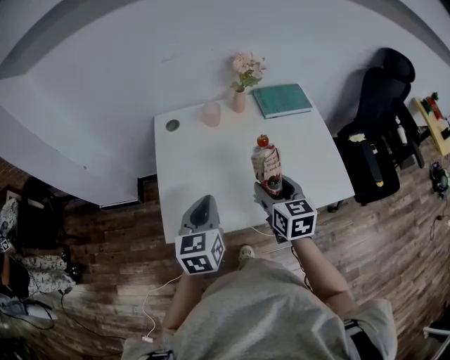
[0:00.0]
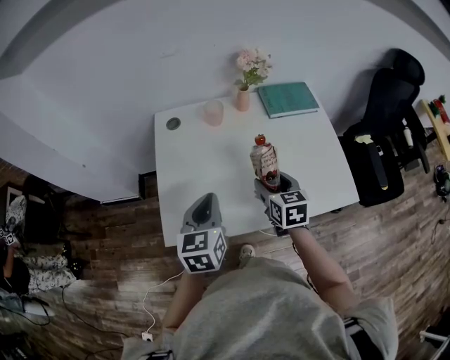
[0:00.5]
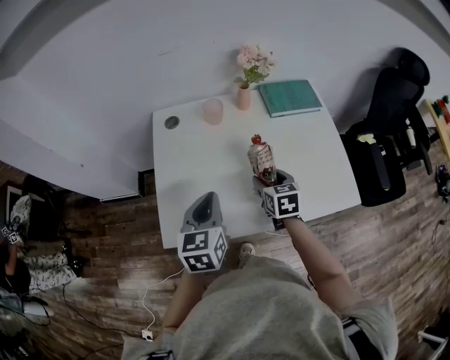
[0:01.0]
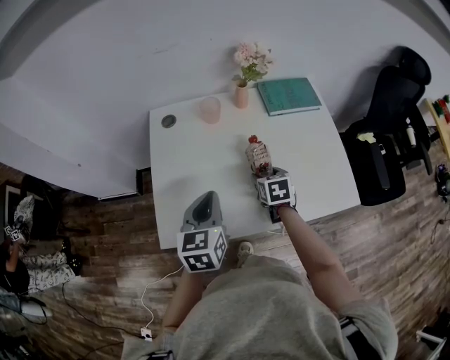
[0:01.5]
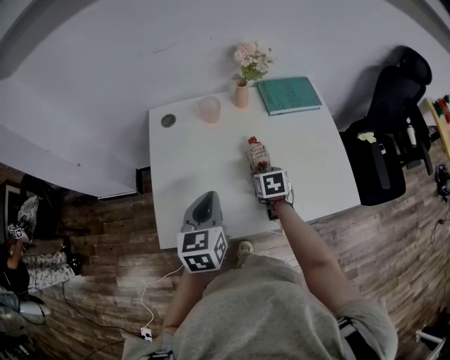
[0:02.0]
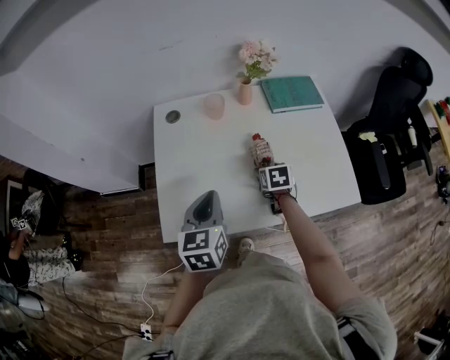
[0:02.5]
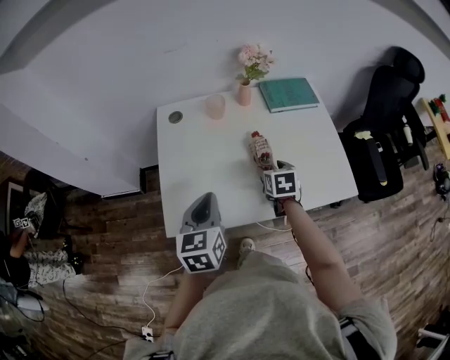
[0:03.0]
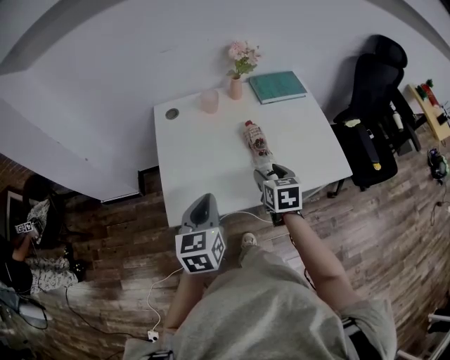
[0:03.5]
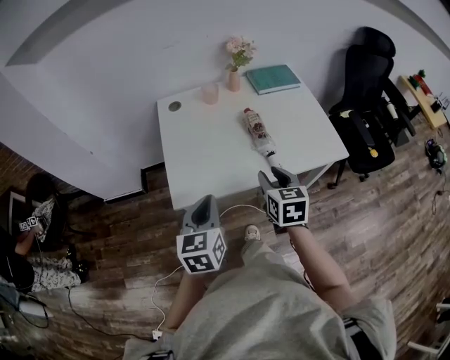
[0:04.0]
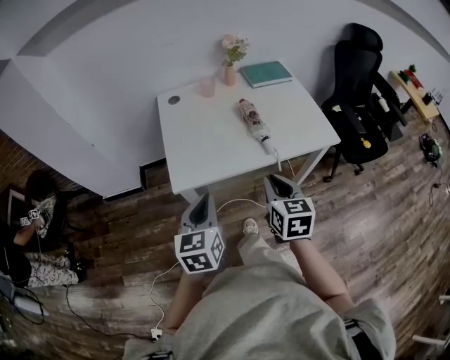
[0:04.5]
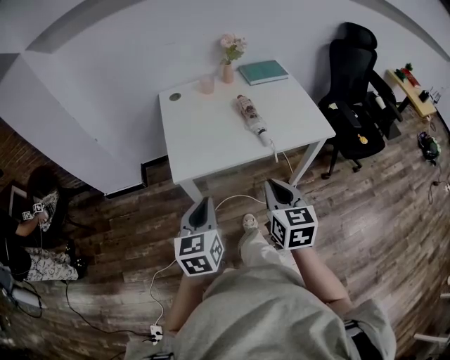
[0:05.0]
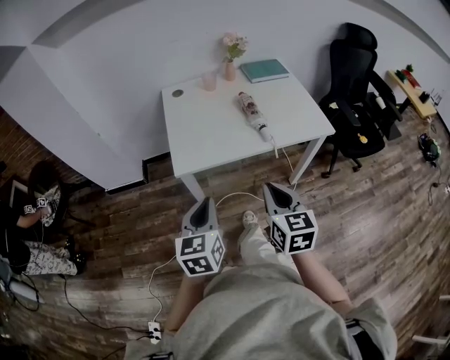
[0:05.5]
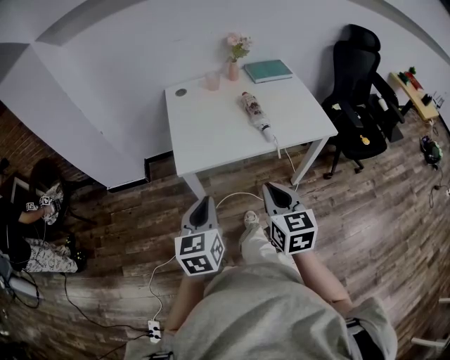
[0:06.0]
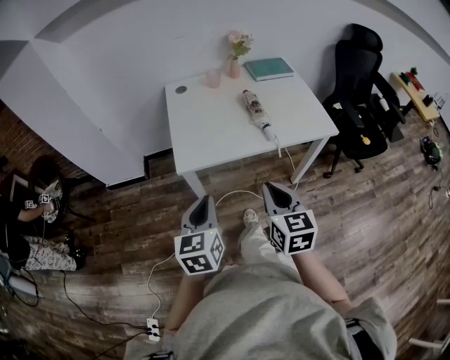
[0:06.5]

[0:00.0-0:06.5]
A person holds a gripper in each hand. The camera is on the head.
0.0 to 2.0 s: The left gripper moves forward, roughly 5 cm. The right gripper goes approximately 20 cm downward and forward, and tips its fingers downward by approximately 30 degrees.
2.0 to 4.5 s: The right gripper moves backward and upward, some 40 cm, tips its fingers upward by about 30 degrees, and closes its fingers, while the left gripper goes approximately 30 cm backward.
4.5 to 6.5 s: The grippers both shift backward by approximately 10 cm.

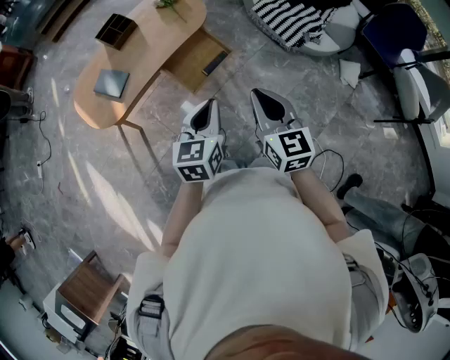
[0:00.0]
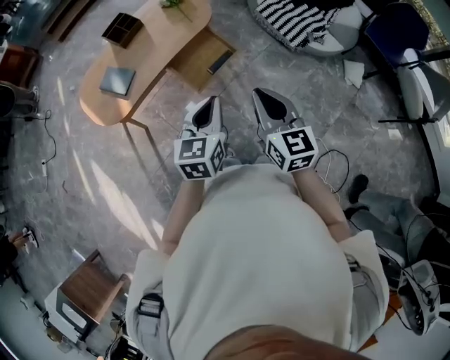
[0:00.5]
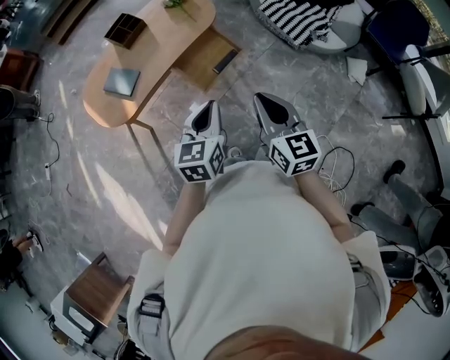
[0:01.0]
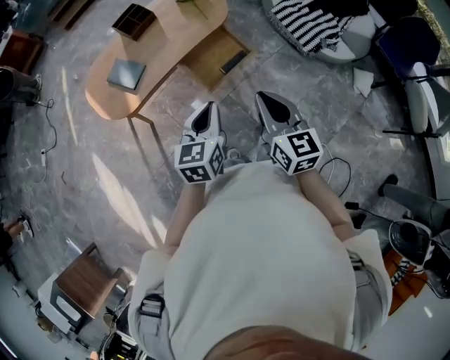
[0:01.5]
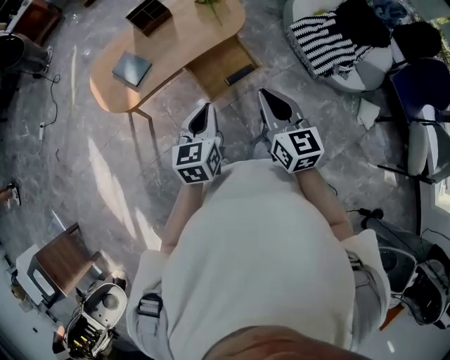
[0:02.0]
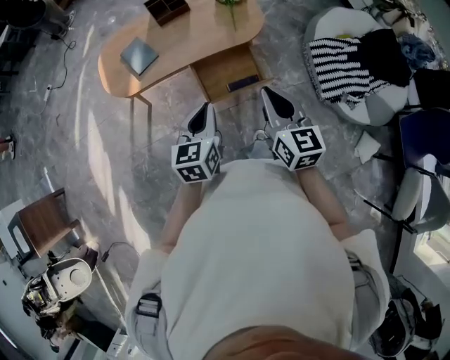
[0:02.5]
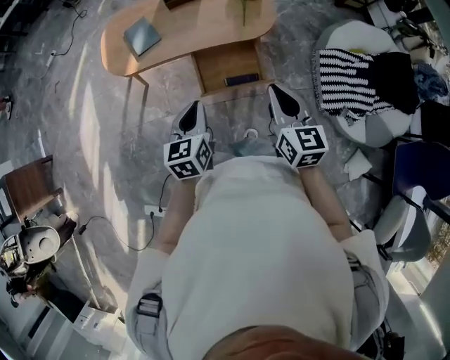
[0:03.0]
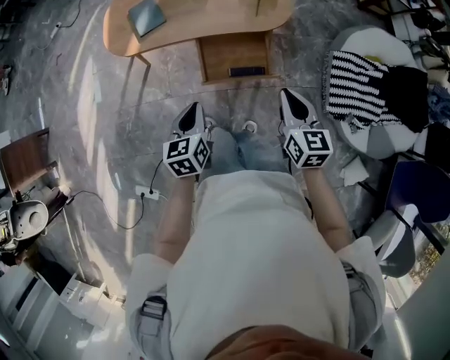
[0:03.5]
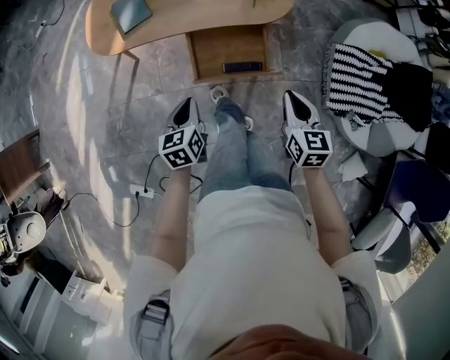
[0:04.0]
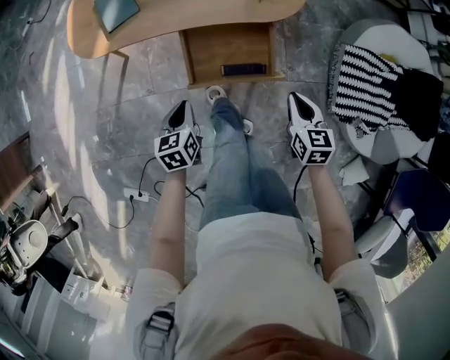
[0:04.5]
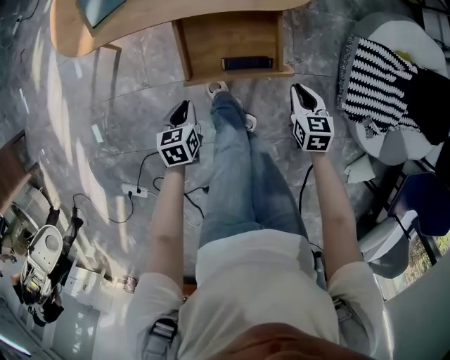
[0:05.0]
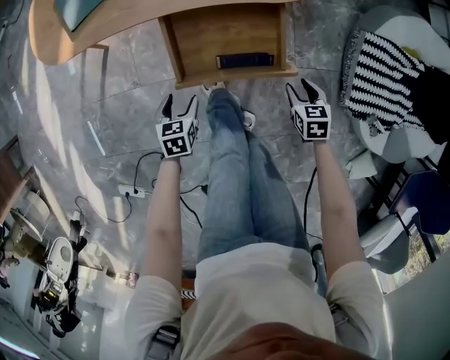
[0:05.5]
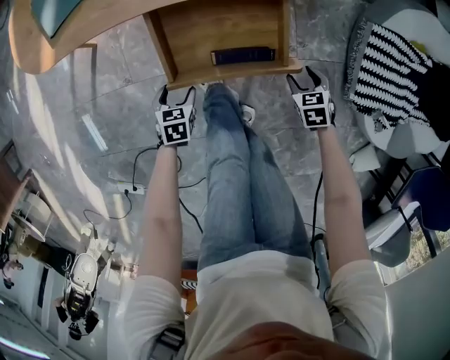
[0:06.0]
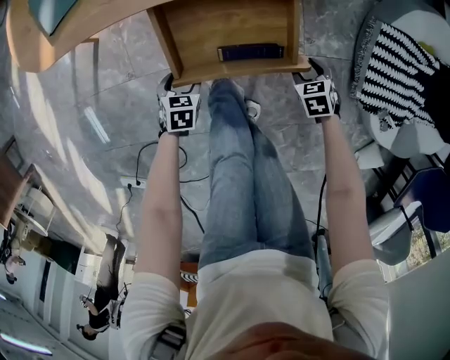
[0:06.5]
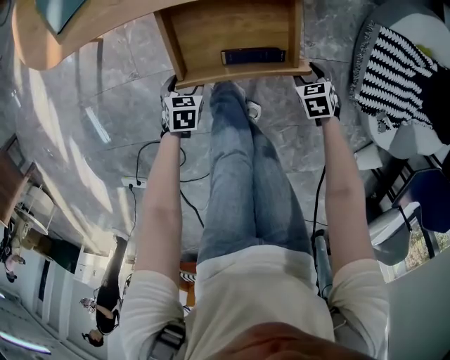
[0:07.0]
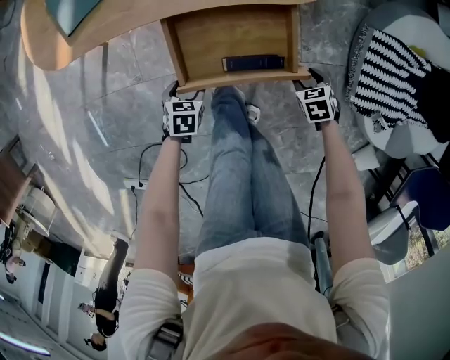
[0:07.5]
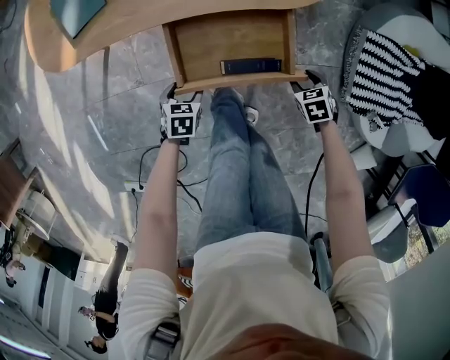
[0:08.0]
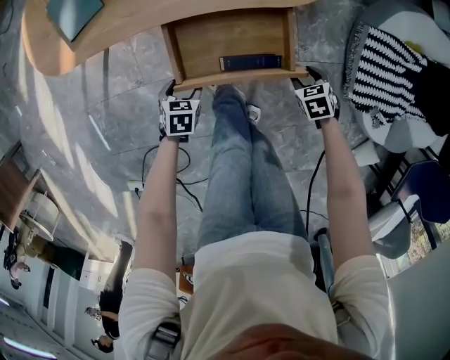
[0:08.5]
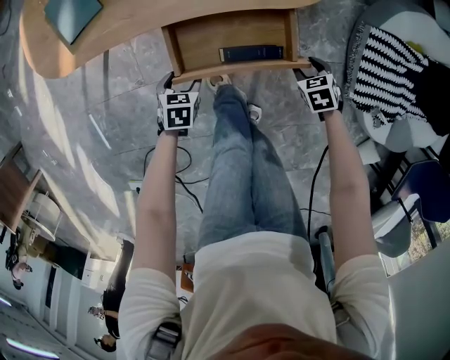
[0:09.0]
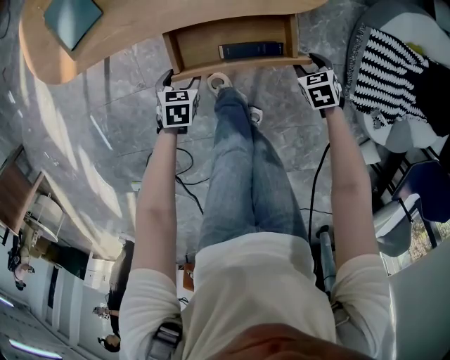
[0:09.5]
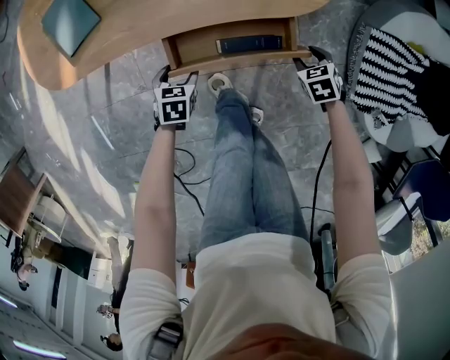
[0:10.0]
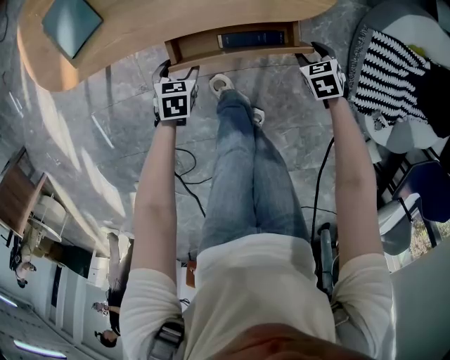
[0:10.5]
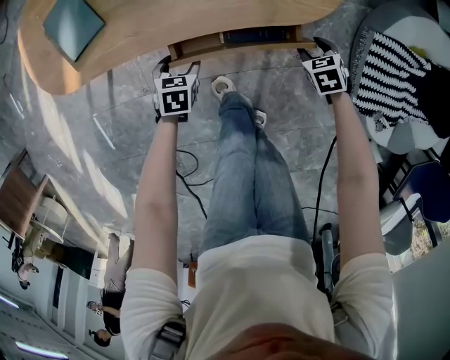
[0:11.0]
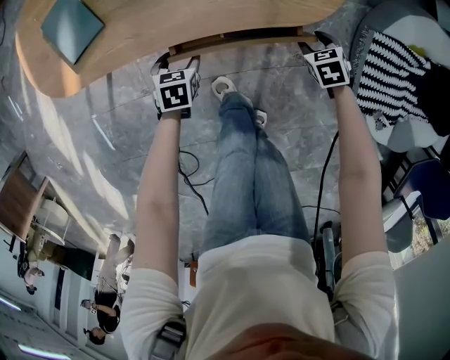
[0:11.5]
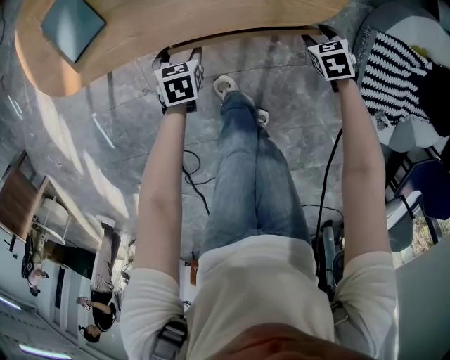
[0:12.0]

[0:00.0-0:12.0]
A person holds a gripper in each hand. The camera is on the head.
0.0 to 2.0 s: The left gripper travels forward and to the left by approximately 10 cm. The right gripper moves forward, about 10 cm.
2.0 to 4.0 s: The right gripper moves about 30 cm, and turns by some 30 degrees. The left gripper heads downward, covering some 20 cm, and swivels roughly 40 degrees.
4.0 to 6.0 s: The two grippers go about 40 cm downward. The right gripper tilts its fingers roughly 30 degrees downward, and opens its fingers, while the left gripper rotates about 30 degrees, and opens its fingers.
6.0 to 8.0 s: The left gripper moves about 5 cm.
8.0 to 10.0 s: The left gripper moves some 10 cm, while the right gripper changes place by about 10 cm.
10.0 to 12.0 s: The right gripper ends up about 10 cm from where it was; the left gripper changes place by some 10 cm.

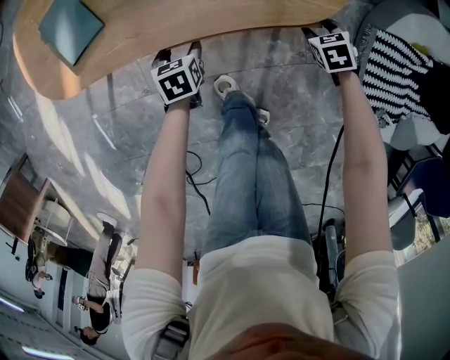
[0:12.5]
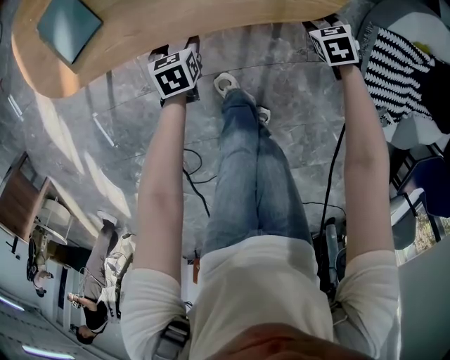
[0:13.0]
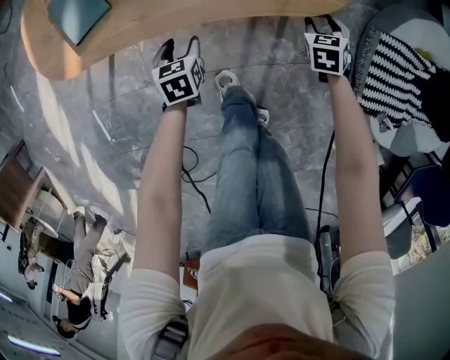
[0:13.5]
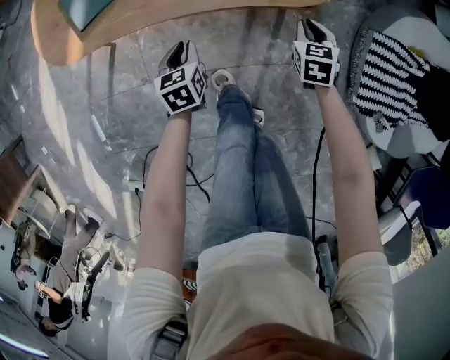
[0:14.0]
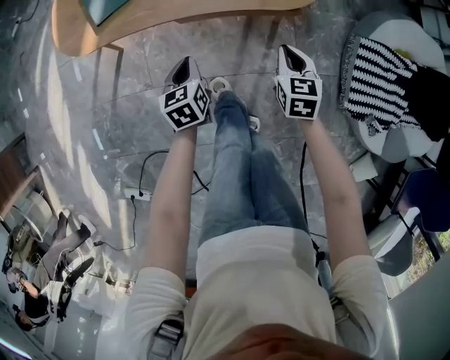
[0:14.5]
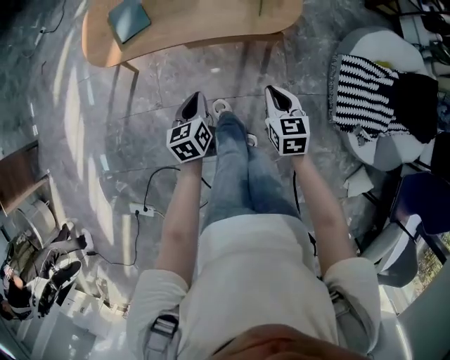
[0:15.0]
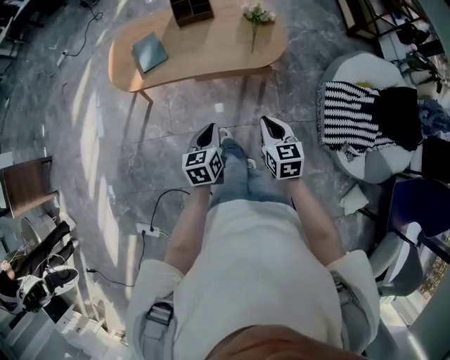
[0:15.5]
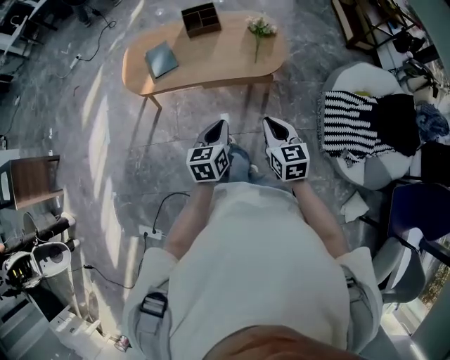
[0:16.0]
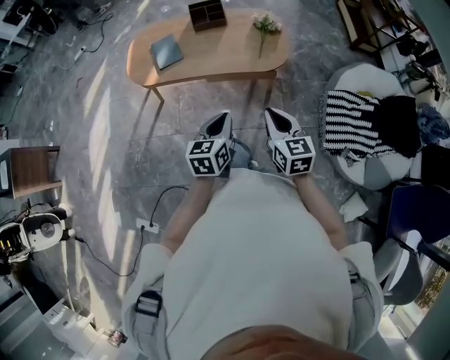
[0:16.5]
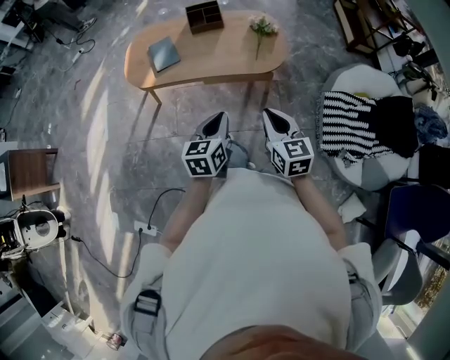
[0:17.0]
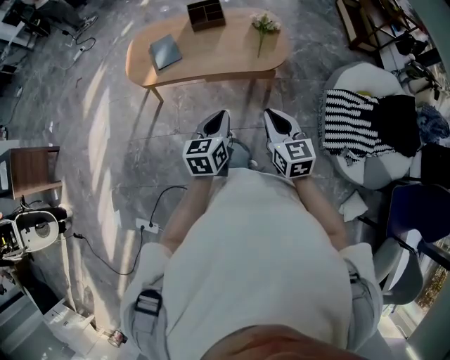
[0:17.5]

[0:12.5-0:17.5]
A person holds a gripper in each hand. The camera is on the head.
12.5 to 15.0 s: The two grippers go some 35 cm upward and backward. The right gripper tilts its fingers some 40 degrees upward, and closes up, while the left gripper changes its angle by approximately 30 degrees, and closes its fingers.
15.0 to 17.5 s: Both grippers move upward and backward, roughly 25 cm.

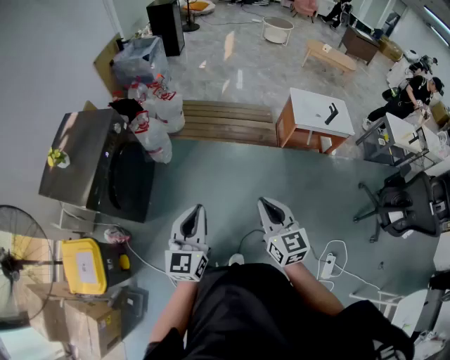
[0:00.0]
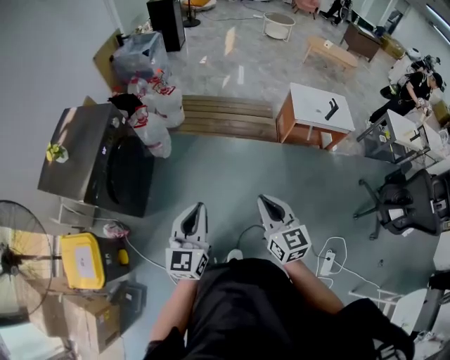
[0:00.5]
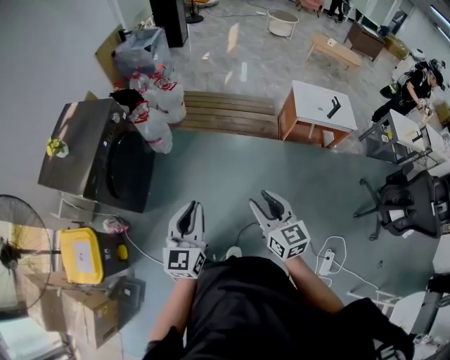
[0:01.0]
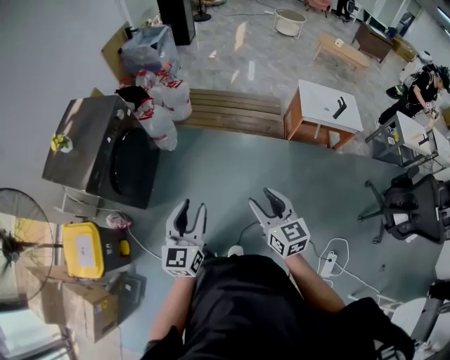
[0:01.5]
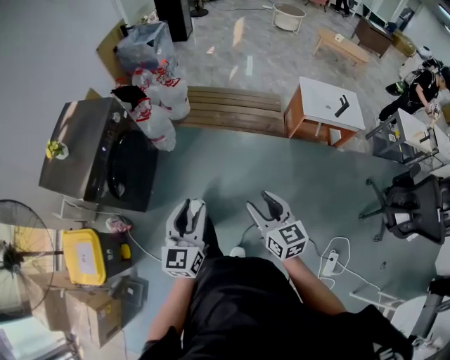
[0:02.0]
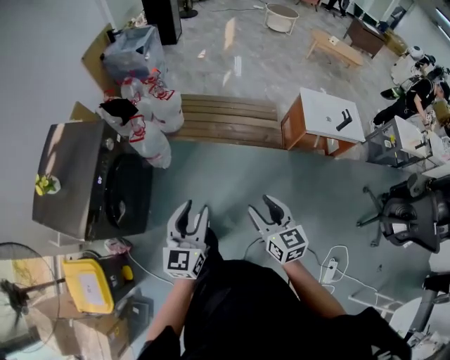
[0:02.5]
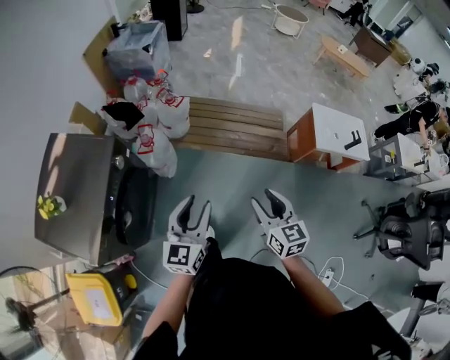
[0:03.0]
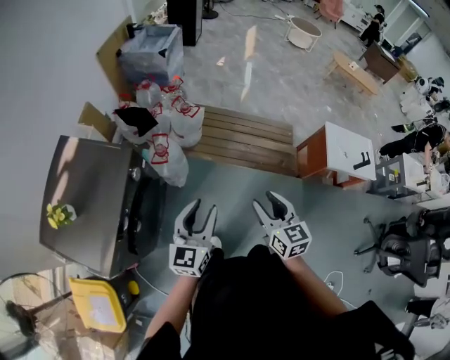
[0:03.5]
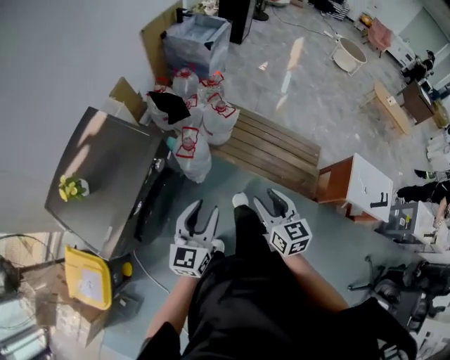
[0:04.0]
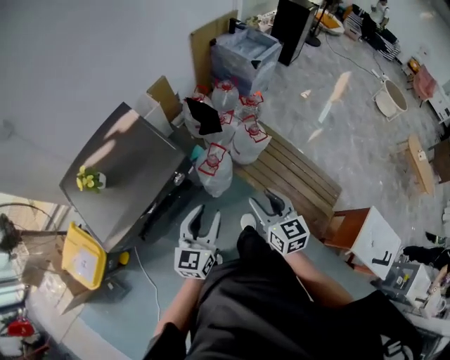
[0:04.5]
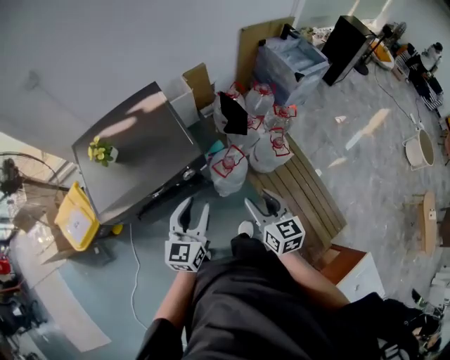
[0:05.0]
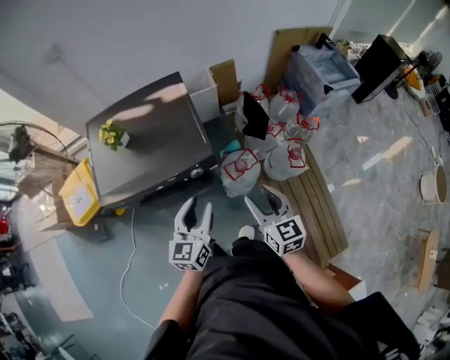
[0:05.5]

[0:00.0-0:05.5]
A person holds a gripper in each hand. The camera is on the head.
0.0 to 2.0 s: The right gripper travels downward by approximately 5 cm, and opens up, while the left gripper shifts by some 5 cm, and opens up.
2.0 to 3.5 s: The pair of grippers is taken forward and to the left, some 40 cm.
3.5 to 5.5 s: The left gripper ends up some 25 cm from where it was, and changes its angle by about 70 degrees. Meanwhile the right gripper shifts by roughly 40 cm, and swivels roughly 60 degrees.
